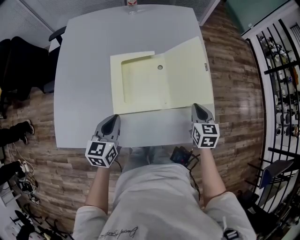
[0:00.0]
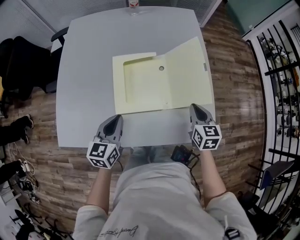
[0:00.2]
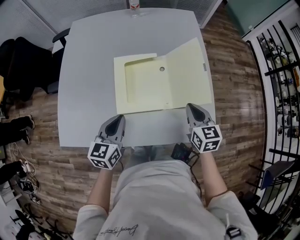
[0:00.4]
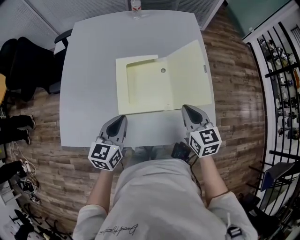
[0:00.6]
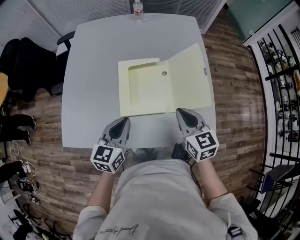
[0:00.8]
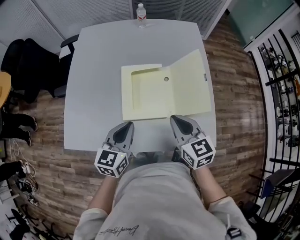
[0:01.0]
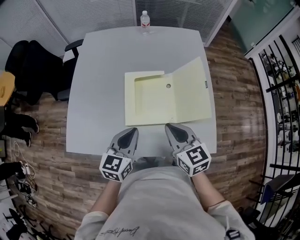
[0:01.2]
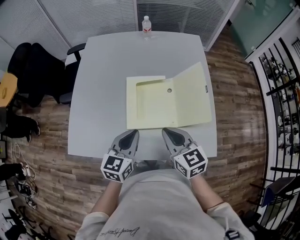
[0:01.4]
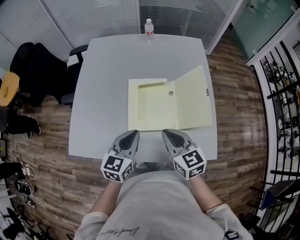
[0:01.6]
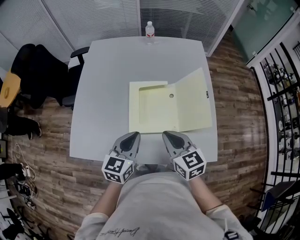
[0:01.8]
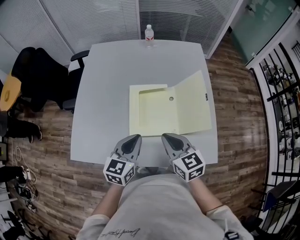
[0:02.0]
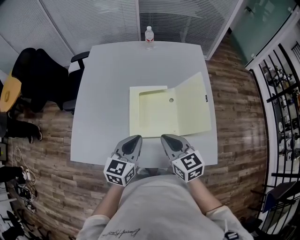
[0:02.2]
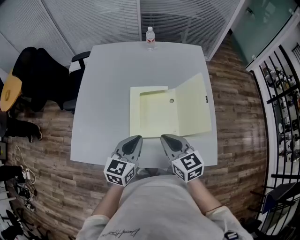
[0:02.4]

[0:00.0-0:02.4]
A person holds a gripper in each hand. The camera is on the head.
0:00.0 to 0:01.2: The left gripper moves upward, about 5 cm, while the right gripper moves to the left and upward, about 20 cm, and changes its angle by some 30 degrees.
0:01.2 to 0:02.4: The grippers stay close to where they were, moving slightly.

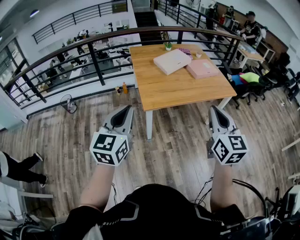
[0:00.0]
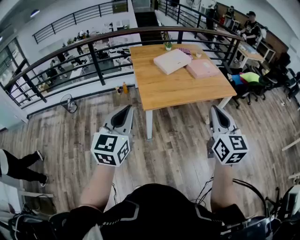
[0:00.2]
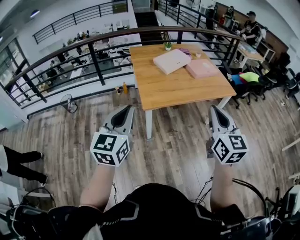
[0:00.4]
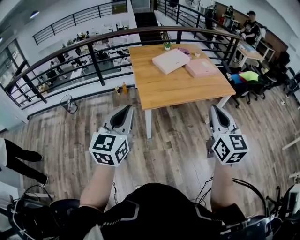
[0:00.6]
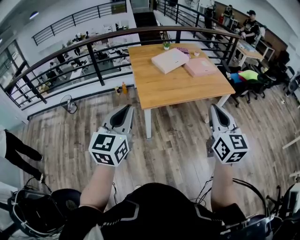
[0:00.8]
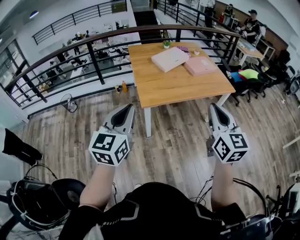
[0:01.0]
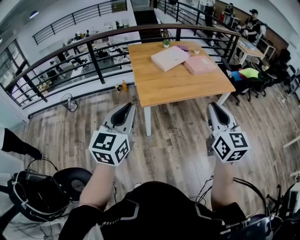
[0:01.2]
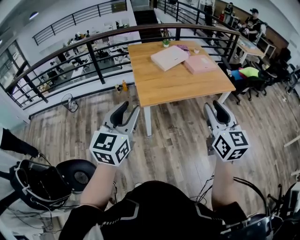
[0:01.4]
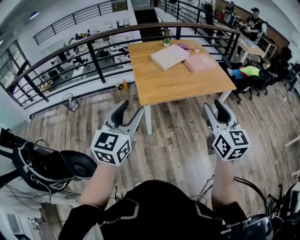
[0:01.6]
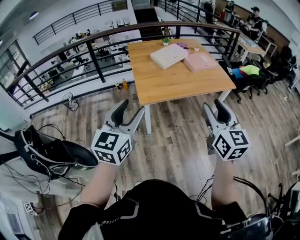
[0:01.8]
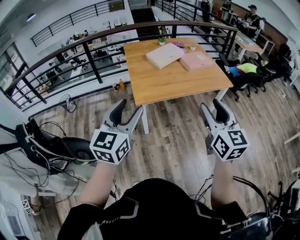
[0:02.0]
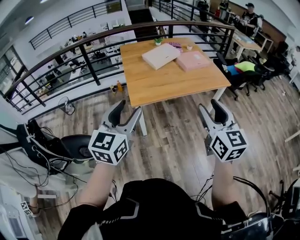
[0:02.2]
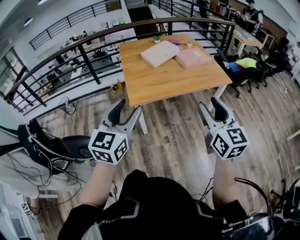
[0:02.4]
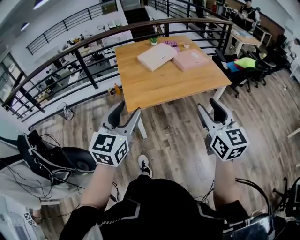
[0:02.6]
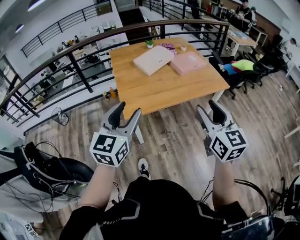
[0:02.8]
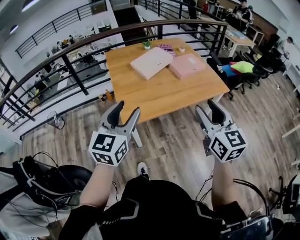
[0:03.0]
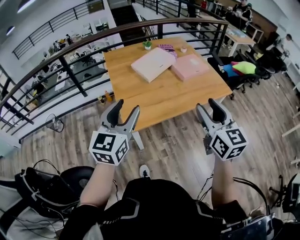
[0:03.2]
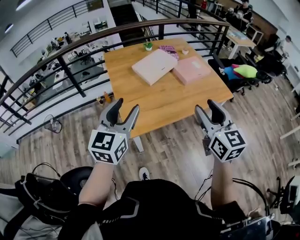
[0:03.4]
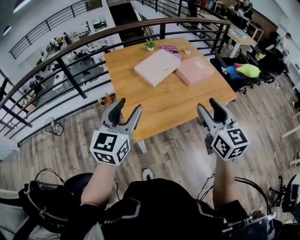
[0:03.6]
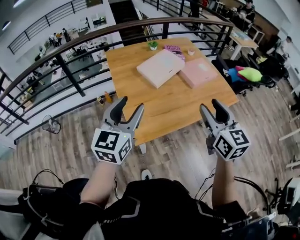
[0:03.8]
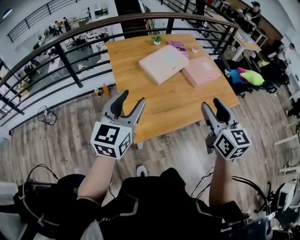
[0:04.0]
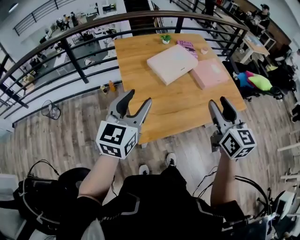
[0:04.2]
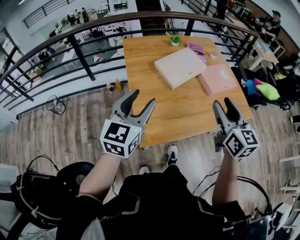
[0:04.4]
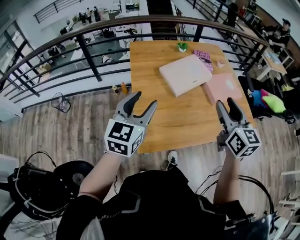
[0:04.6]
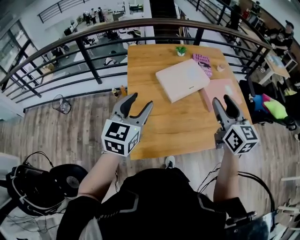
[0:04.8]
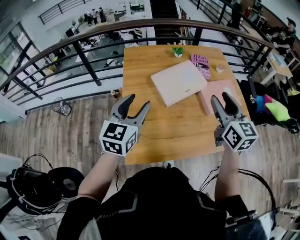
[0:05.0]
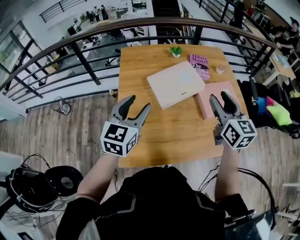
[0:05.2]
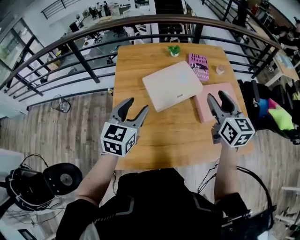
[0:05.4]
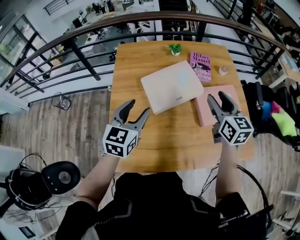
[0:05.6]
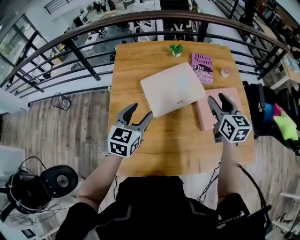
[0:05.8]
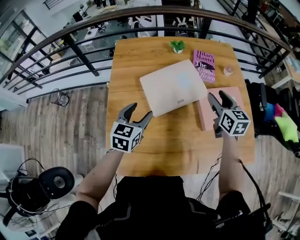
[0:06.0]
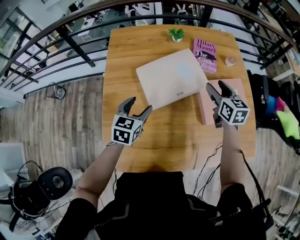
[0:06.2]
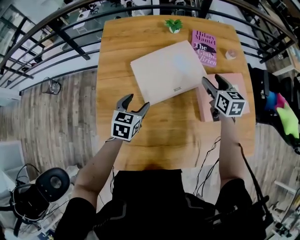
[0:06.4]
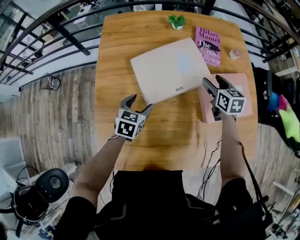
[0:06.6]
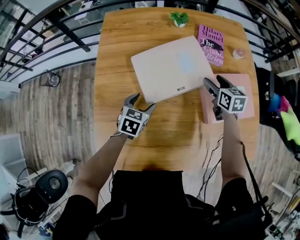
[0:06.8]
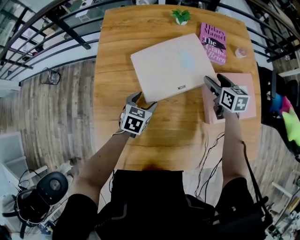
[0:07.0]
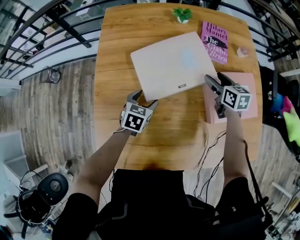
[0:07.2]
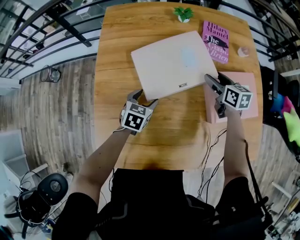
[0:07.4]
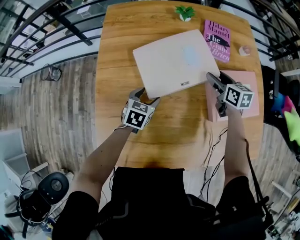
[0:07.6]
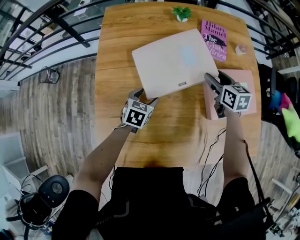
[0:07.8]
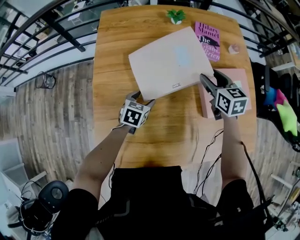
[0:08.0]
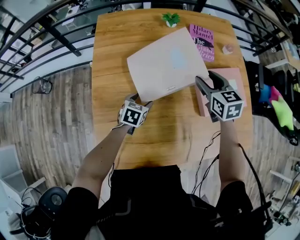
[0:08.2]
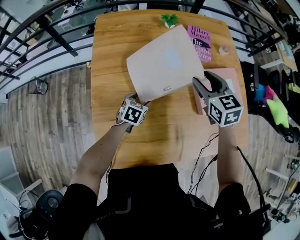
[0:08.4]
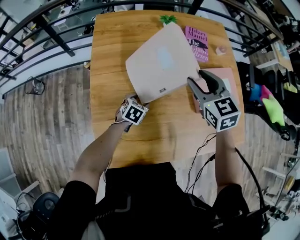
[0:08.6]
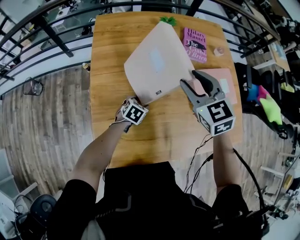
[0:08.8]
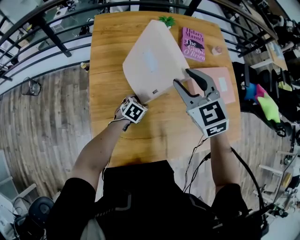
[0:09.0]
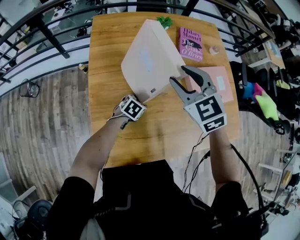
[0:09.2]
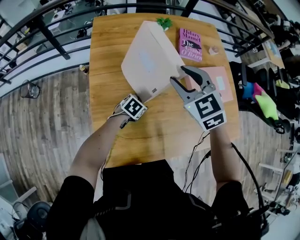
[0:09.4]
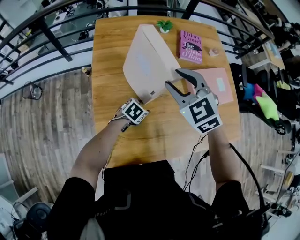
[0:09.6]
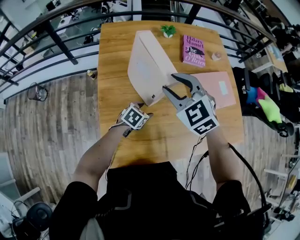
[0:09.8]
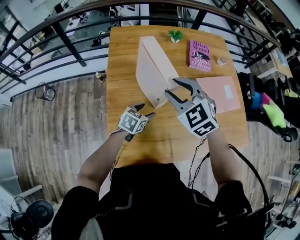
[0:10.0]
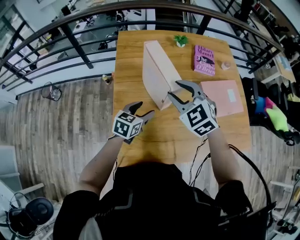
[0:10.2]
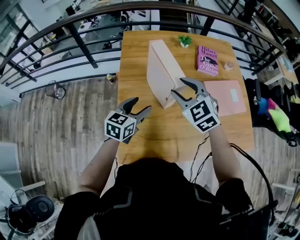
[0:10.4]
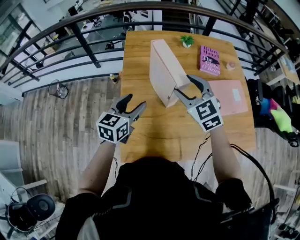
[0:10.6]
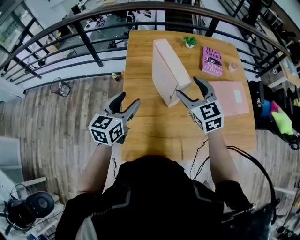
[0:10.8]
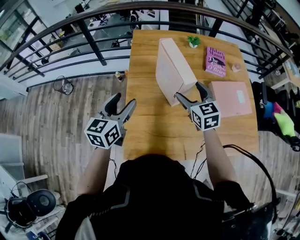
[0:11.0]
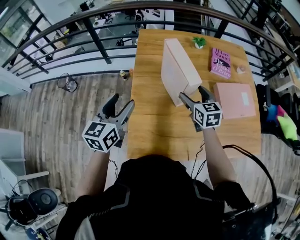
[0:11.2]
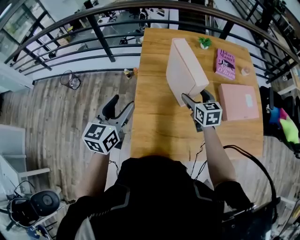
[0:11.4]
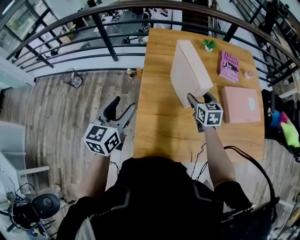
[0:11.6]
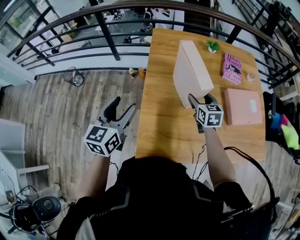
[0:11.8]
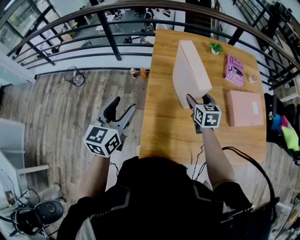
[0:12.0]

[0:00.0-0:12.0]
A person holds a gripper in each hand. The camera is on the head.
0:00.0 to 0:01.6: The left gripper goes about 5 cm to the right, and opens. Meanwhile the right gripper opens up.
0:01.6 to 0:03.0: The two grippers go approximately 15 cm forward.
0:03.0 to 0:04.4: The two grippers go about 25 cm forward and to the left.
0:04.4 to 0:06.0: The left gripper is displaced forward, downward and to the right by about 35 cm, and changes its angle by approximately 20 degrees; the right gripper moves forward, to the right and downward, approximately 40 cm.
0:06.0 to 0:07.6: The right gripper is displaced downward and forward by roughly 15 cm; the left gripper heads downward, covering about 20 cm, and changes its angle by about 20 degrees.
0:07.6 to 0:09.0: The right gripper is displaced upward, to the left and backward by approximately 30 cm, and rotates around the line of its fingers by some 40 degrees, counterclockwise from behind. Meanwhile the left gripper shifts by roughly 5 cm.
0:09.0 to 0:10.4: The right gripper moves to the left and backward, some 10 cm. The left gripper shifts roughly 25 cm upward and to the left, and tilts its fingers some 30 degrees upward.
0:10.4 to 0:12.0: The right gripper shifts about 10 cm downward, and swivels about 40 degrees, while the left gripper travels to the left and upward by approximately 20 cm, and turns by some 20 degrees.

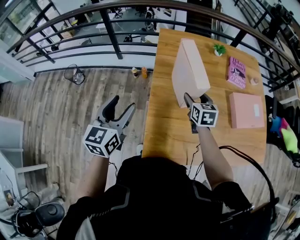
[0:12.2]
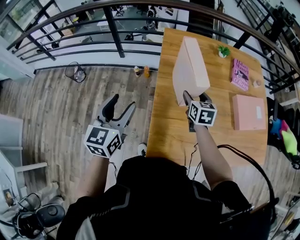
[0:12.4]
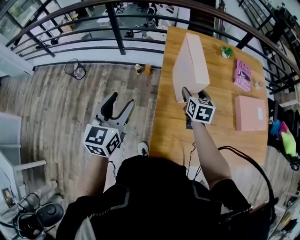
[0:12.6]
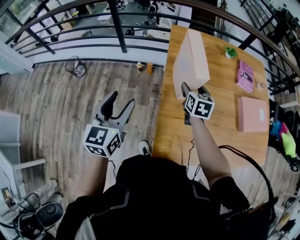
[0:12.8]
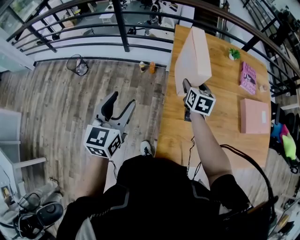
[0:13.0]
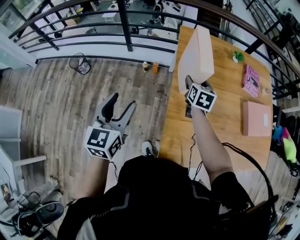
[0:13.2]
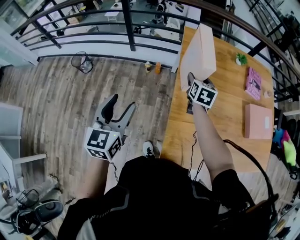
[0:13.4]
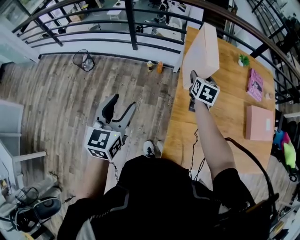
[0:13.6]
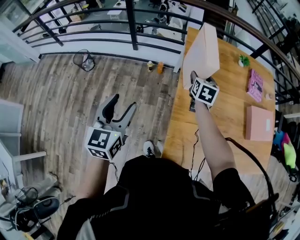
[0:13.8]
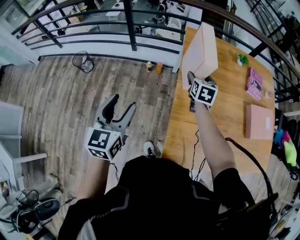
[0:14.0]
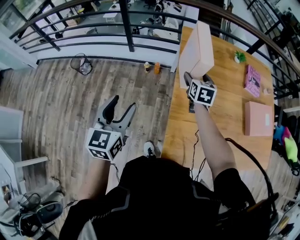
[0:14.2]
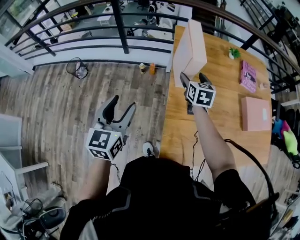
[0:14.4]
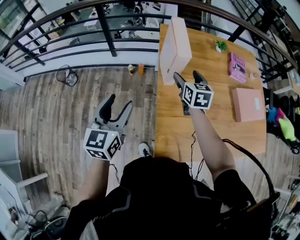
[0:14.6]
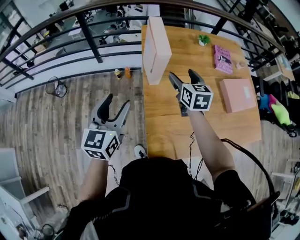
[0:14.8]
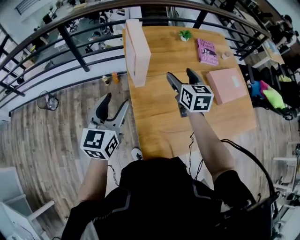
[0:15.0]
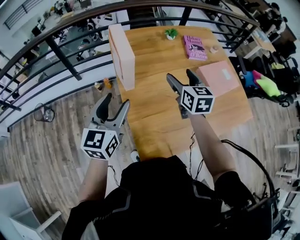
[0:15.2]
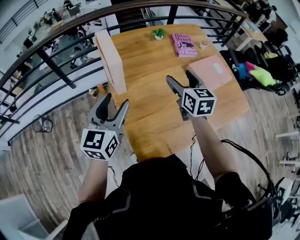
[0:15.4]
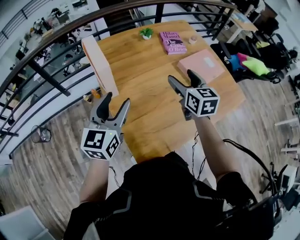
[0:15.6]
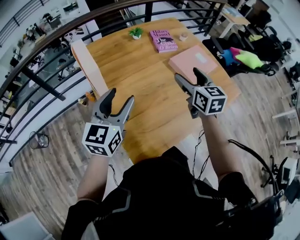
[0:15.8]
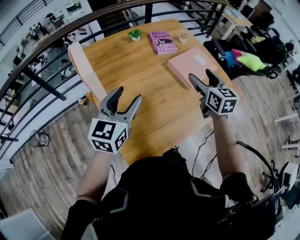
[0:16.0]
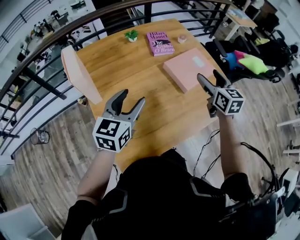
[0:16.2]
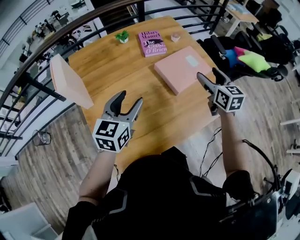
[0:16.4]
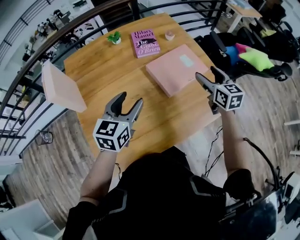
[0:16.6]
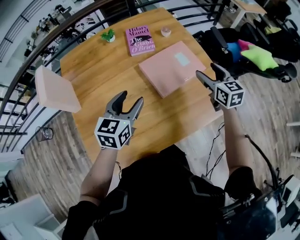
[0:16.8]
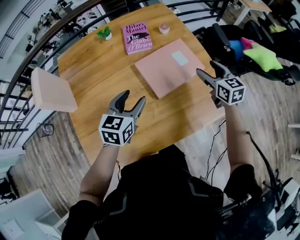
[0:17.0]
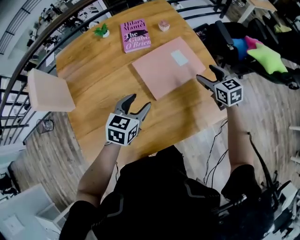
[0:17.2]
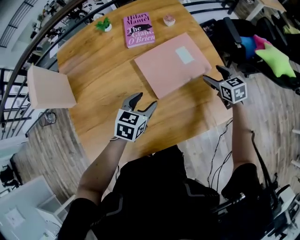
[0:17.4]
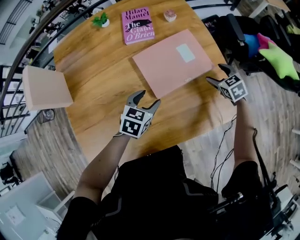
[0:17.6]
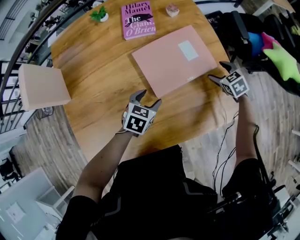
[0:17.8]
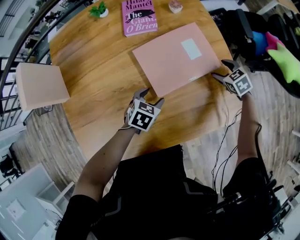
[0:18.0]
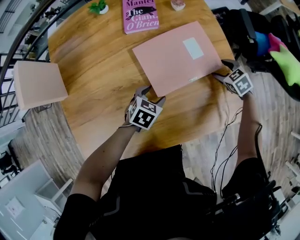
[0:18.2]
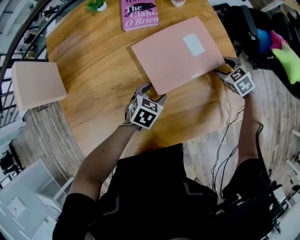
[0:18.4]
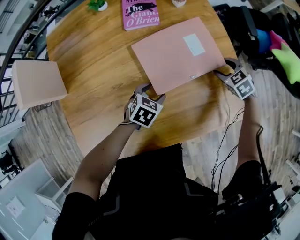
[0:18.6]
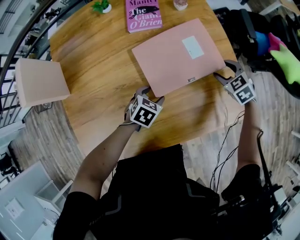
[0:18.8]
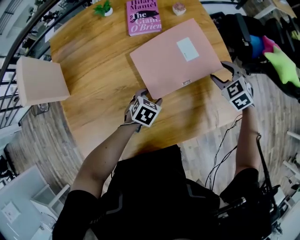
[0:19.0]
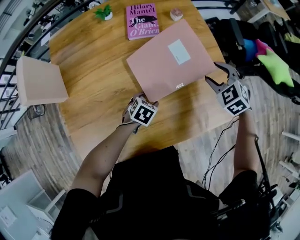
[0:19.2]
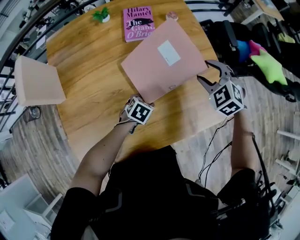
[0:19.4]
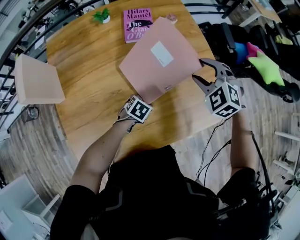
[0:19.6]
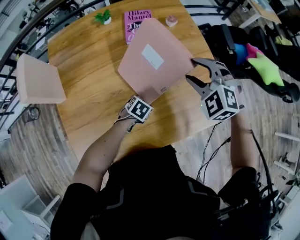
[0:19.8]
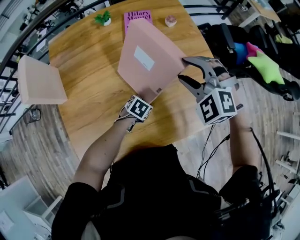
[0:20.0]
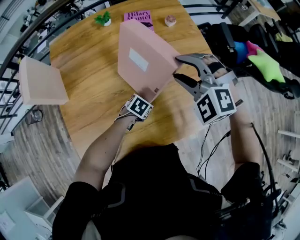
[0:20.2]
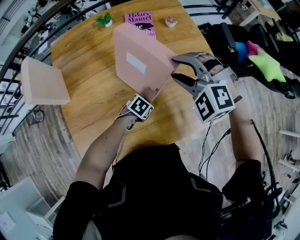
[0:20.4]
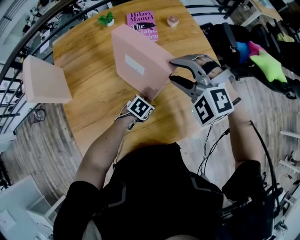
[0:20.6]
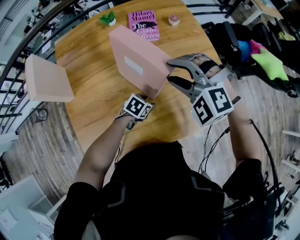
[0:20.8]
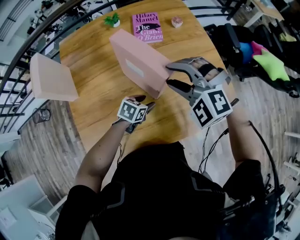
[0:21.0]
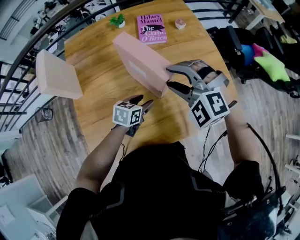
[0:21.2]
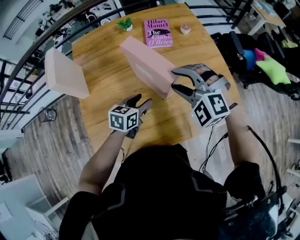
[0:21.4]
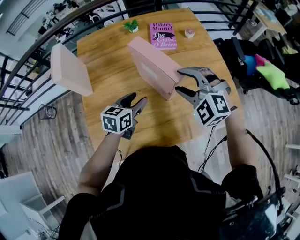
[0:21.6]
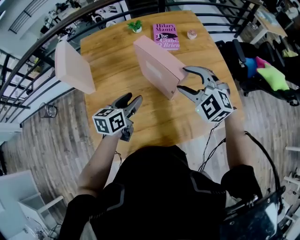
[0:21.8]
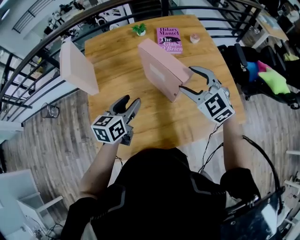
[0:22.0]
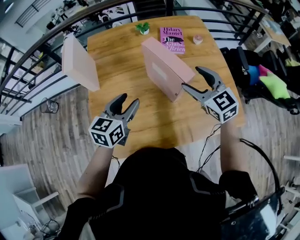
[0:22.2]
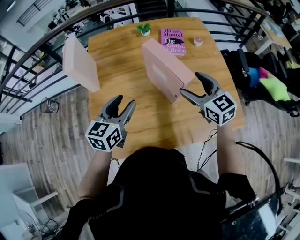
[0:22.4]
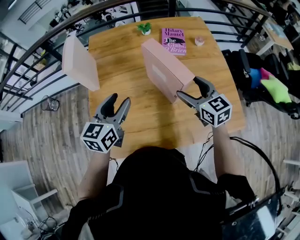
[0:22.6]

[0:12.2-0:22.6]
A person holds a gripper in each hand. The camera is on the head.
0:12.2 to 0:13.6: The left gripper shifts roughly 15 cm to the left, while the right gripper shifts some 20 cm to the left and forward.
0:13.6 to 0:15.2: The right gripper travels to the right, upward and backward by about 25 cm, while the left gripper is displaced to the right by some 20 cm, and rotates some 30 degrees.
0:15.2 to 0:16.6: The grippers both shift to the right by about 40 cm.
0:16.6 to 0:18.2: The right gripper heads downward, to the right and forward, covering approximately 30 cm, and tilts its fingers roughly 40 degrees downward; the left gripper heads downward and to the right, covering about 30 cm, and tips its fingers downward by about 40 degrees.
0:18.2 to 0:19.6: The right gripper is displaced upward and to the left by about 25 cm, and changes its angle by approximately 40 degrees. Meanwhile the left gripper ends up approximately 5 cm from where it was.
0:19.6 to 0:21.2: The right gripper is displaced to the left, backward and upward by roughly 20 cm, and turns by some 30 degrees; the left gripper moves upward and to the left, approximately 10 cm, and swivels roughly 30 degrees.
0:21.2 to 0:22.6: The left gripper is displaced upward and to the left by about 25 cm, and changes its angle by roughly 40 degrees. The right gripper twists approximately 60 degrees clockwise, seen from behind, and opens.
